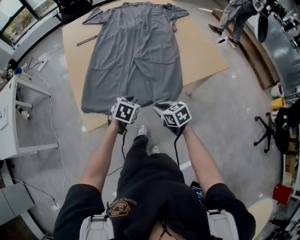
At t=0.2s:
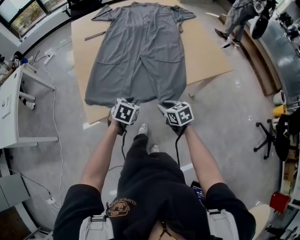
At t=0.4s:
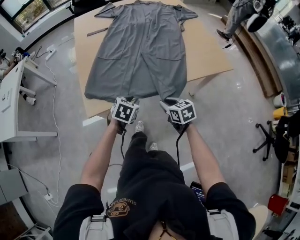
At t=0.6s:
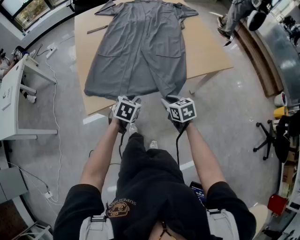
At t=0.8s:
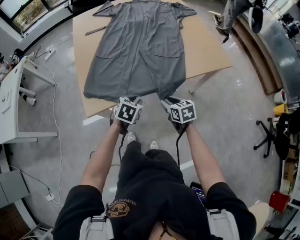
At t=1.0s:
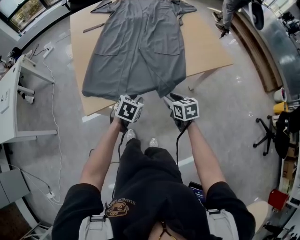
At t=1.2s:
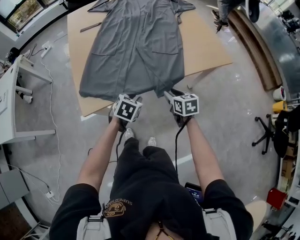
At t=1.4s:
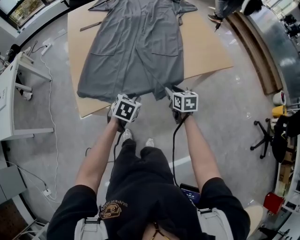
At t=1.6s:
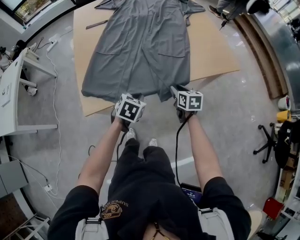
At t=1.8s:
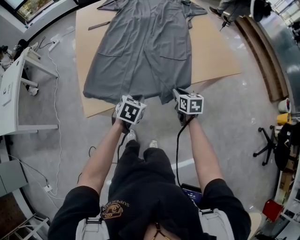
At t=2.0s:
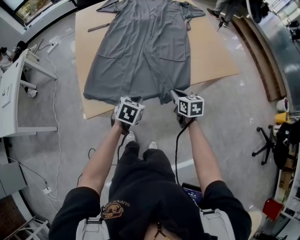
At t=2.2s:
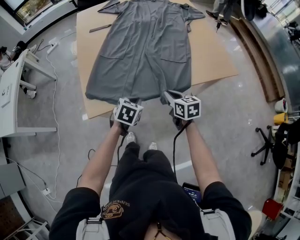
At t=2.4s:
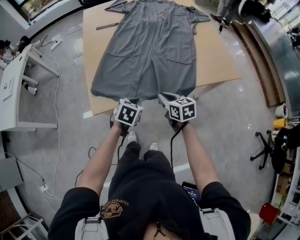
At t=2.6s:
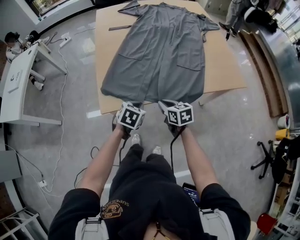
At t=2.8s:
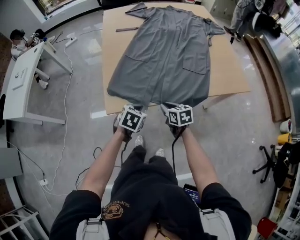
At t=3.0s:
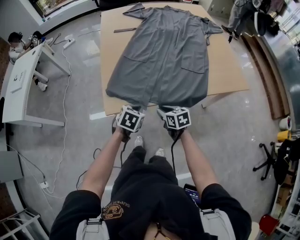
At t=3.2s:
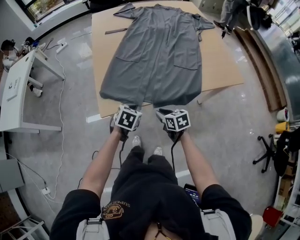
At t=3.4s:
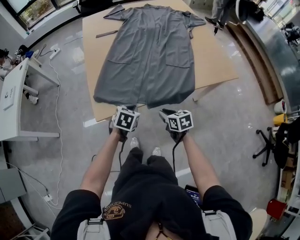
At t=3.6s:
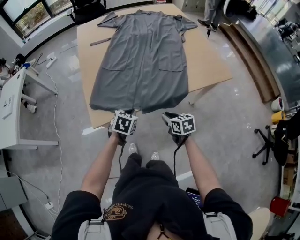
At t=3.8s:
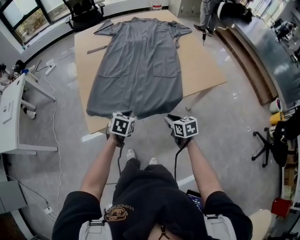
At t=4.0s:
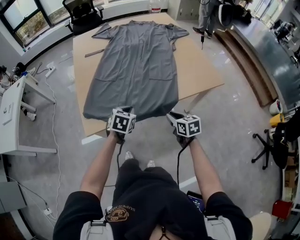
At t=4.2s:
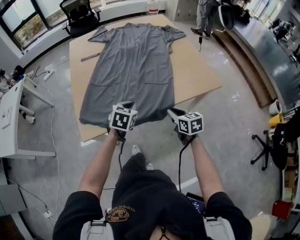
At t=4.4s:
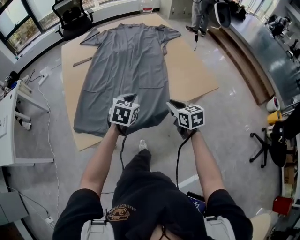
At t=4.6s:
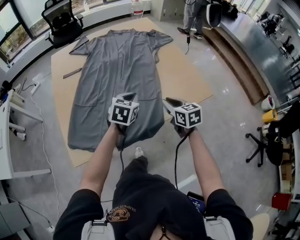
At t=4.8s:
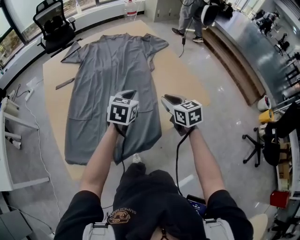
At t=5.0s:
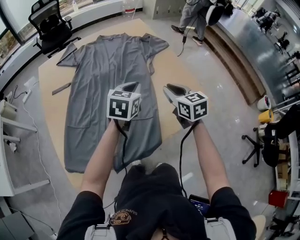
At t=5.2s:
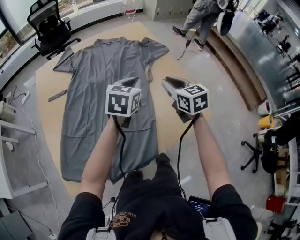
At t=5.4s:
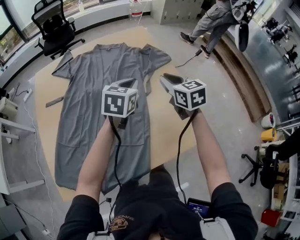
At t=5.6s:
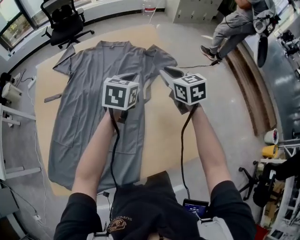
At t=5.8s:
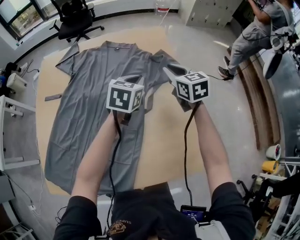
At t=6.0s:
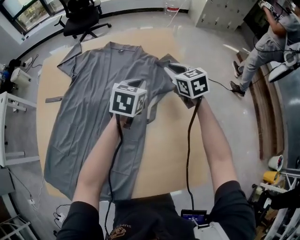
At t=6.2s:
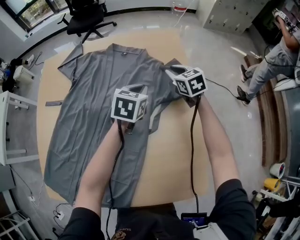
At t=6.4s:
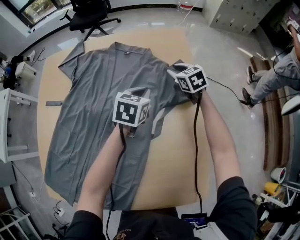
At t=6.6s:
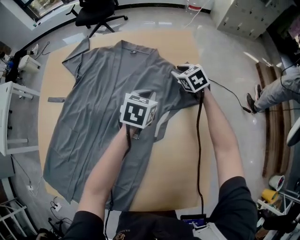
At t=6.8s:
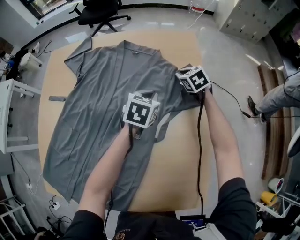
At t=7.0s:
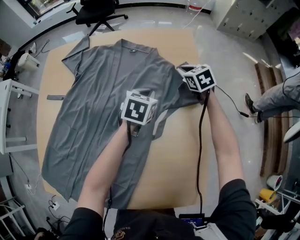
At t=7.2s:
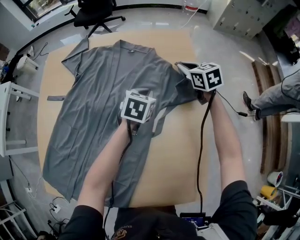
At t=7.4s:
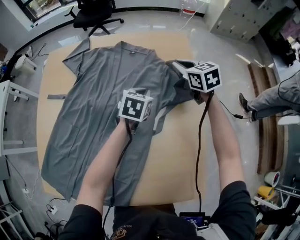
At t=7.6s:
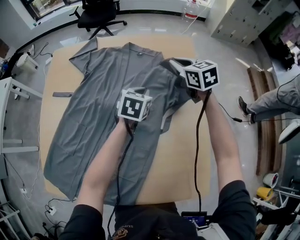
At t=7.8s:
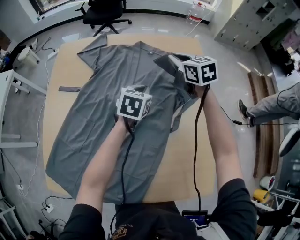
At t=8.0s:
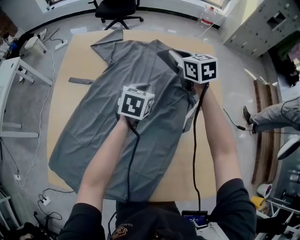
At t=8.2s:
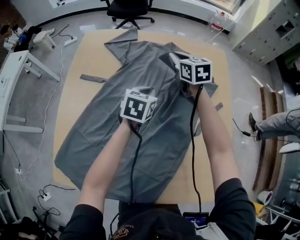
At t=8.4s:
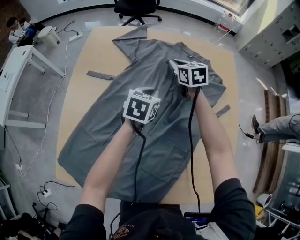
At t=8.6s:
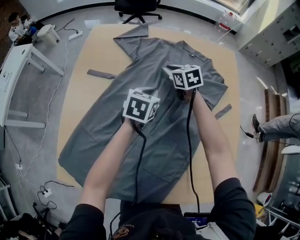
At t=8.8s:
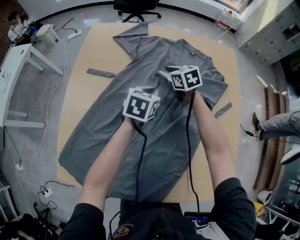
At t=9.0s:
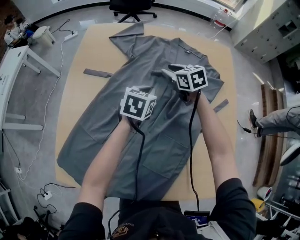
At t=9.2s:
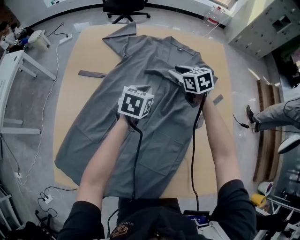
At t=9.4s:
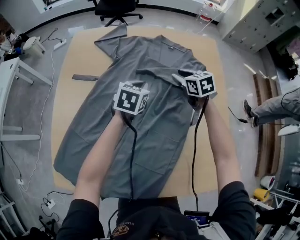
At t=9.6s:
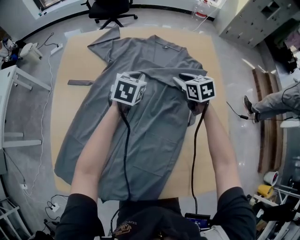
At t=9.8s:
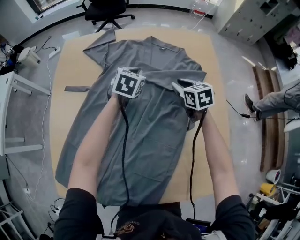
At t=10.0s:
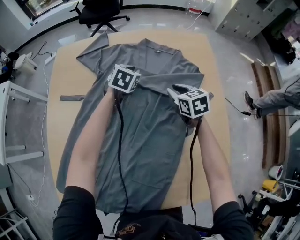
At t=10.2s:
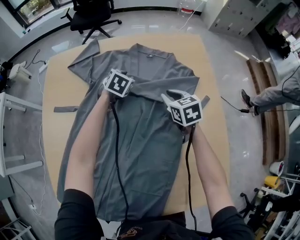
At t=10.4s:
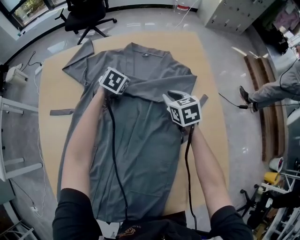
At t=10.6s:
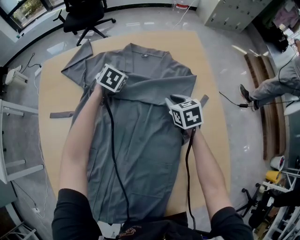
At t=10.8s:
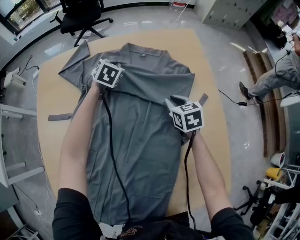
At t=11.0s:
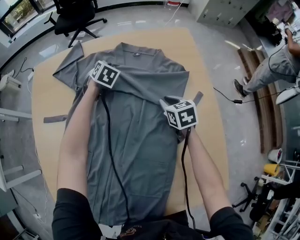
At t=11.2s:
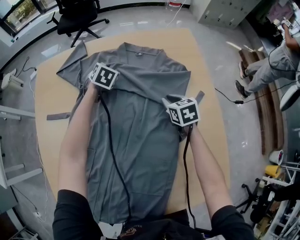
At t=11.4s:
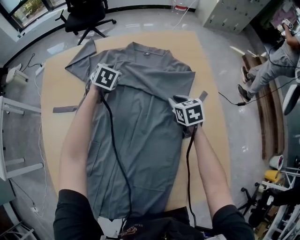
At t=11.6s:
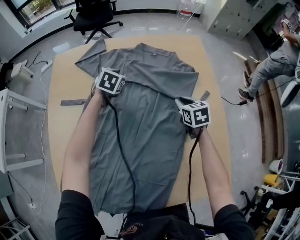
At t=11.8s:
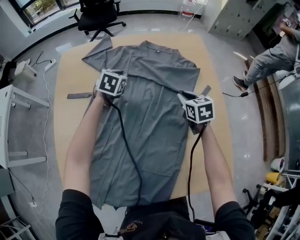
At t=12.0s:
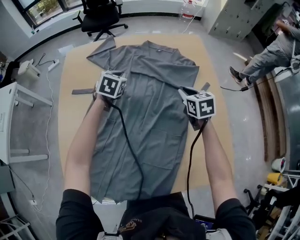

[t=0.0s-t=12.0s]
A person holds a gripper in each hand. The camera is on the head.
t=0.0s to t=1.6s: The left gripper closes. Meanwhile the right gripper moves to the right and forward, roughly 10 cm, changes its angle by some 20 degrees, and opens up.
t=1.6s to t=3.0s: The right gripper travels to the left by about 20 cm, and swivels approximately 20 degrees; the left gripper heads to the left, covering approximately 15 cm.
t=3.0s to t=4.4s: The left gripper moves to the right, forward and upward, some 25 cm. The right gripper shifts roughly 30 cm to the right and upward, and changes its angle by about 20 degrees.
t=4.4s to t=6.0s: The pair of grippers is taken forward, roughly 60 cm. The right gripper swivels approximately 20 degrees.
t=6.0s to t=7.6s: The left gripper goes approximately 5 cm to the left. Meanwhile the right gripper heads to the left and forward, covering some 10 cm, and moves approximately 15 cm downward and comes back.
t=7.6s to t=9.0s: Both grippers travel together to the left, roughly 25 cm. The right gripper opens its fingers.
t=9.0s to t=10.4s: The right gripper heads to the right, covering about 20 cm, and changes its angle by approximately 20 degrees. The left gripper is displaced forward and downward by some 20 cm, turns by some 30 degrees, and opens its fingers.
t=10.4s to t=12.0s: The left gripper is displaced upward, backward and to the left by about 20 cm, and closes, while the right gripper travels backward and upward by some 10 cm.

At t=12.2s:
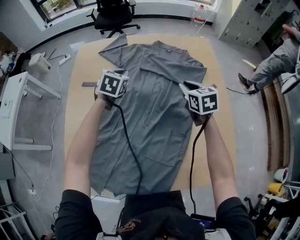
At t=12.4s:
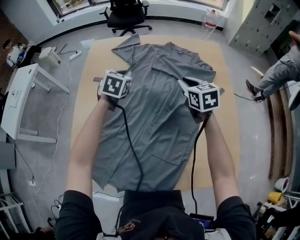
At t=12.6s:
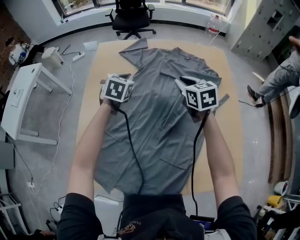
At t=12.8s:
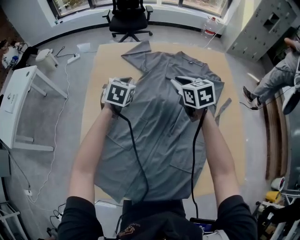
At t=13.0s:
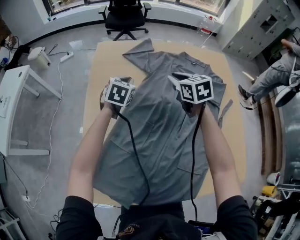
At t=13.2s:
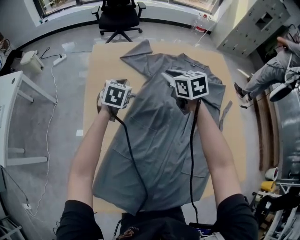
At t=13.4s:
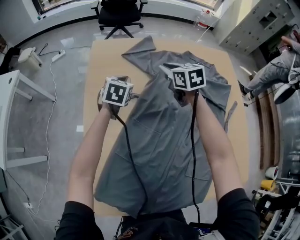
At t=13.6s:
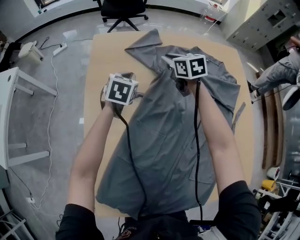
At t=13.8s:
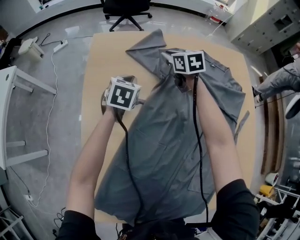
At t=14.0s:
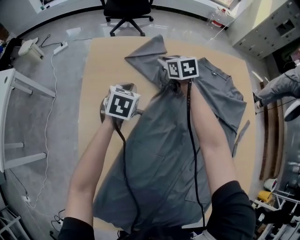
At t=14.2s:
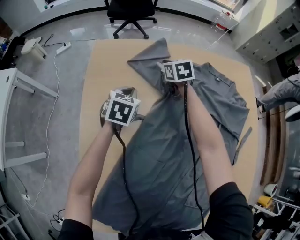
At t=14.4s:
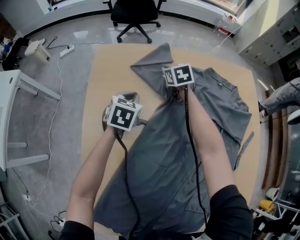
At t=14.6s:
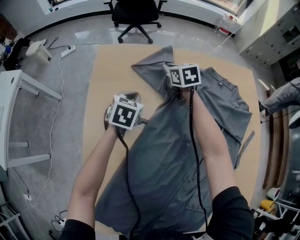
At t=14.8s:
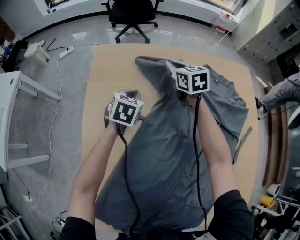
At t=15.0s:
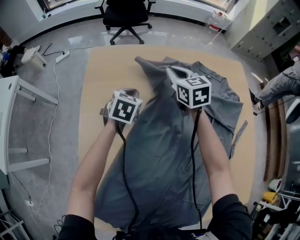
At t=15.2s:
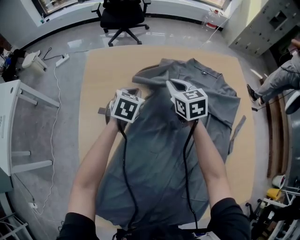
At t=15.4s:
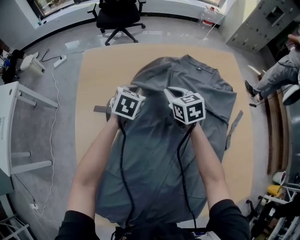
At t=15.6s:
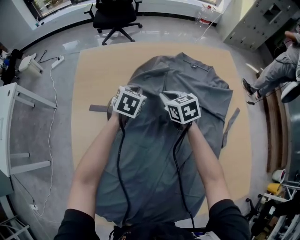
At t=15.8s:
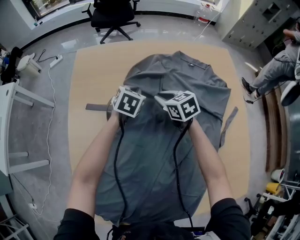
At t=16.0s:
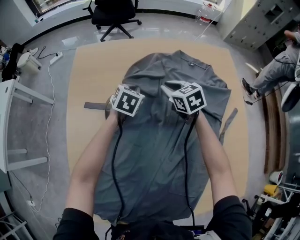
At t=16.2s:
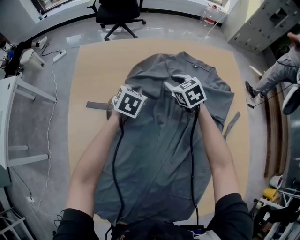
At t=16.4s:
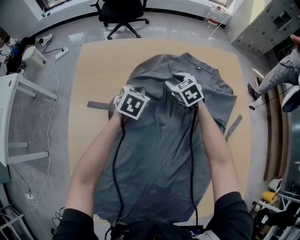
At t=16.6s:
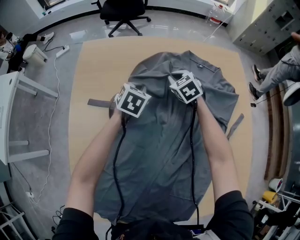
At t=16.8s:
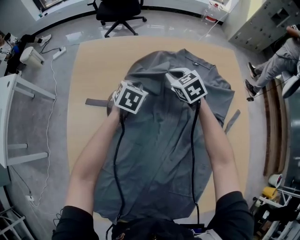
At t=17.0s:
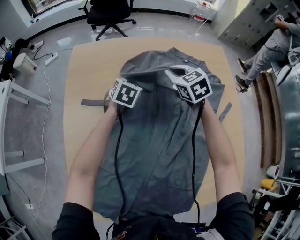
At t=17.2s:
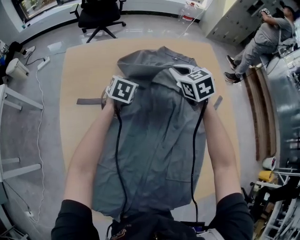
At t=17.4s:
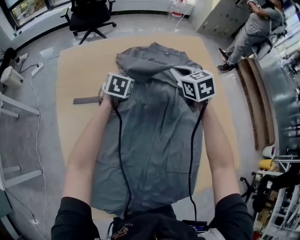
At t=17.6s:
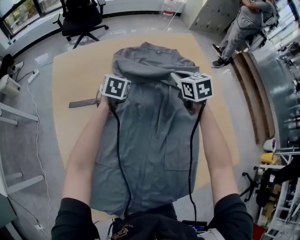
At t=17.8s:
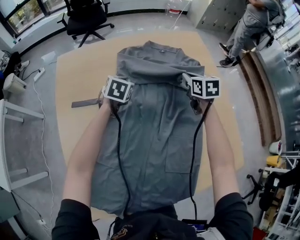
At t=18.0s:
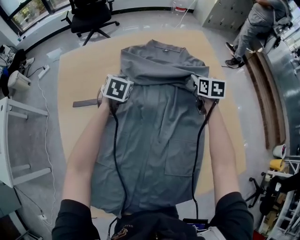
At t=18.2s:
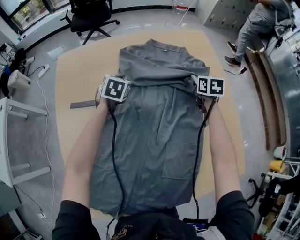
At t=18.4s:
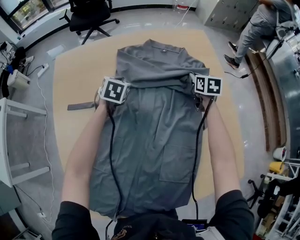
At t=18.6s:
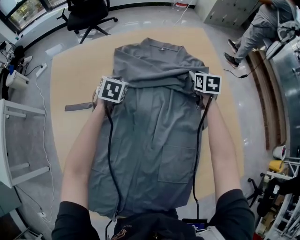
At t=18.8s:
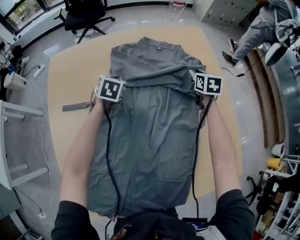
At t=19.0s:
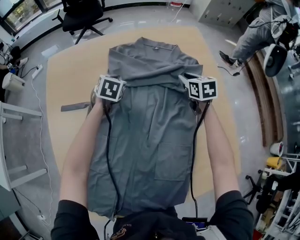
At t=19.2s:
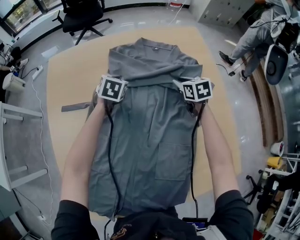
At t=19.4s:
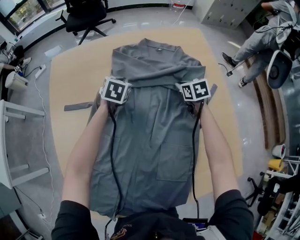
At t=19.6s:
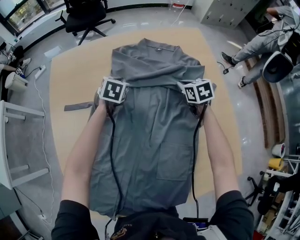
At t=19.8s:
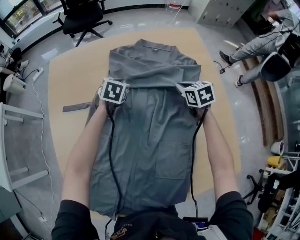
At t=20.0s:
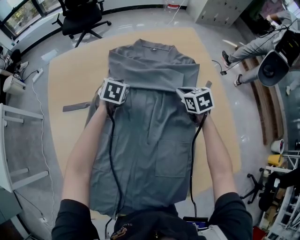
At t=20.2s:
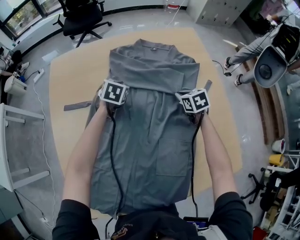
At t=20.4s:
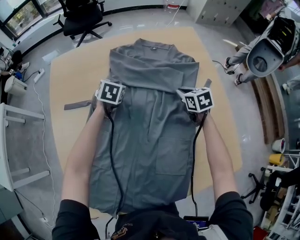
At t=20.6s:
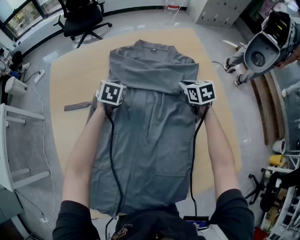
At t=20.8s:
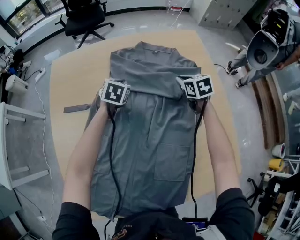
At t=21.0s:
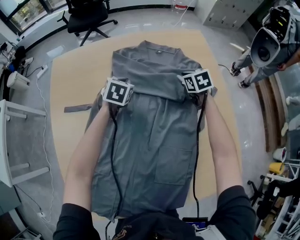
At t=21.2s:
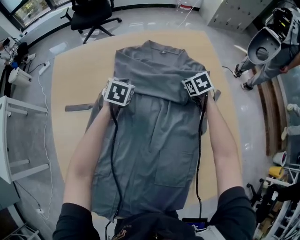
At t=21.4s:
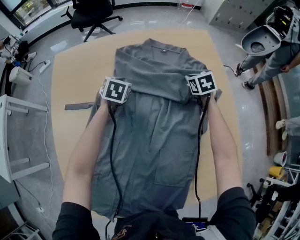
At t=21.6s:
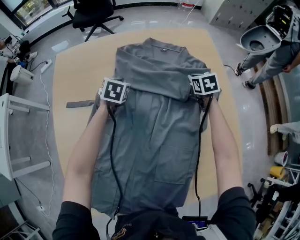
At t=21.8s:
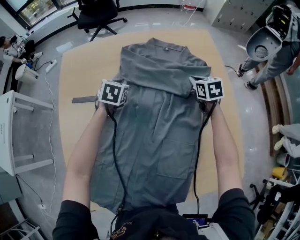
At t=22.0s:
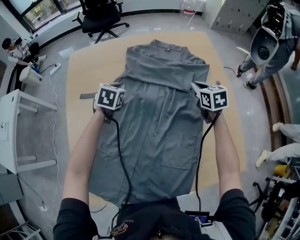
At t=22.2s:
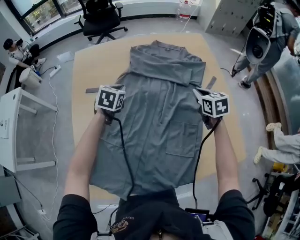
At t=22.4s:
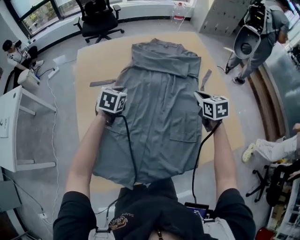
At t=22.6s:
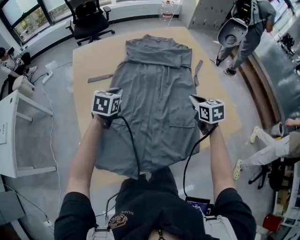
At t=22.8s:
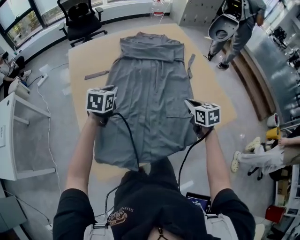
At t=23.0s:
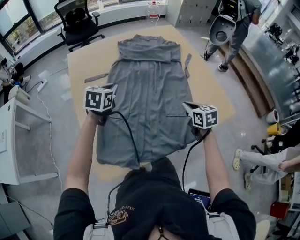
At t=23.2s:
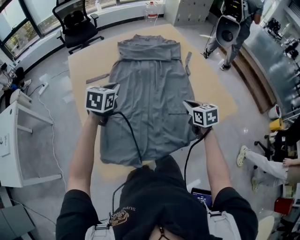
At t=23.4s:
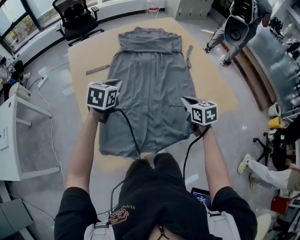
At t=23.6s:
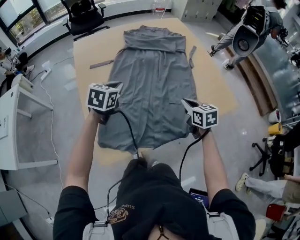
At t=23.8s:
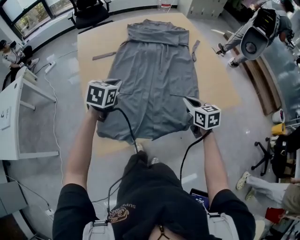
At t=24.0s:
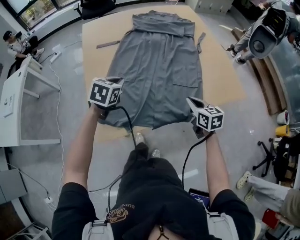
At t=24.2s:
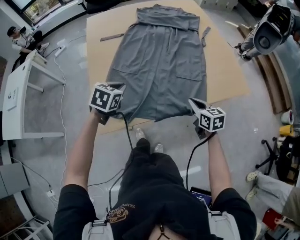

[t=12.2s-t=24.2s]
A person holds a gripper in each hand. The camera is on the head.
t=12.2s to t=13.8s: The right gripper goes about 40 cm forward and to the left, while the left gripper travels to the left, forward and downward by some 25 cm.
t=13.8s to t=15.2s: The right gripper travels backward by approximately 10 cm; the left gripper shifts approximately 5 cm to the right.
t=15.2s to t=16.6s: The left gripper goes about 5 cm to the right; the right gripper goes roughly 10 cm downward and to the right, travels backward and back again, about 5 cm each way, rotates about 30 degrees, and opens, then closes again.
t=16.6s to t=18.2s: The right gripper moves to the right, approximately 25 cm, and rolls clockwise, seen from behind, by approximately 50 degrees. Meanwhile the left gripper goes approximately 5 cm to the right.
t=18.2s to t=19.8s: The right gripper moves backward, roughly 5 cm, changes its angle by some 20 degrees, and opens and closes again.
t=19.8s to t=21.2s: The right gripper moves forward and downward, about 10 cm.
t=21.2s to t=22.6s: The left gripper heads backward and upward, covering some 30 cm; the right gripper is displaced backward by approximately 35 cm, and rotates some 30 degrees.
t=22.6s to t=24.2s: Both grippers move backward, some 25 cm.
